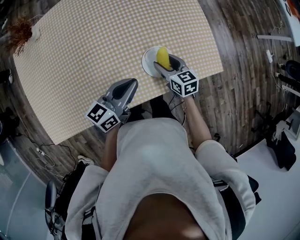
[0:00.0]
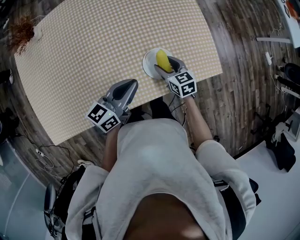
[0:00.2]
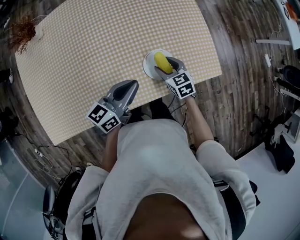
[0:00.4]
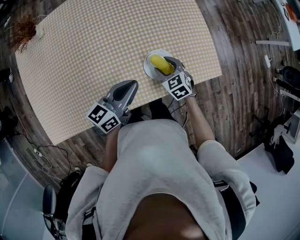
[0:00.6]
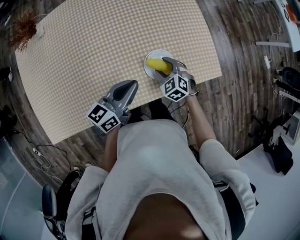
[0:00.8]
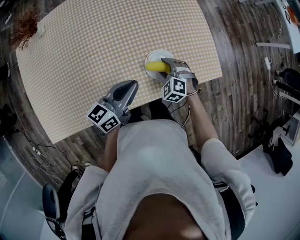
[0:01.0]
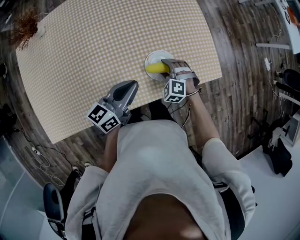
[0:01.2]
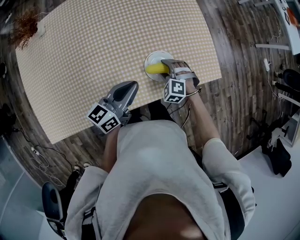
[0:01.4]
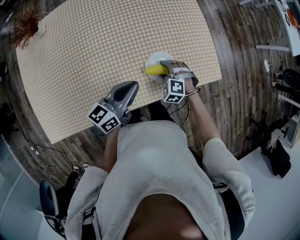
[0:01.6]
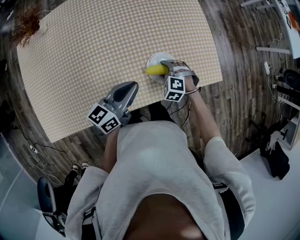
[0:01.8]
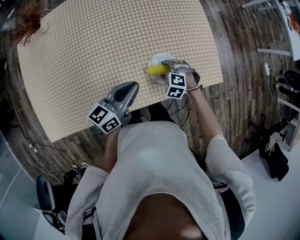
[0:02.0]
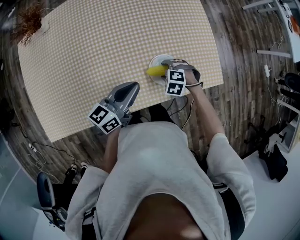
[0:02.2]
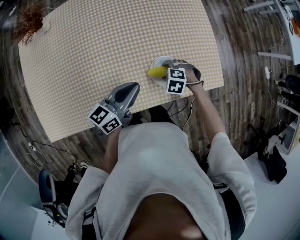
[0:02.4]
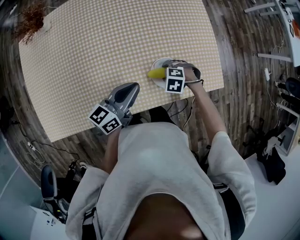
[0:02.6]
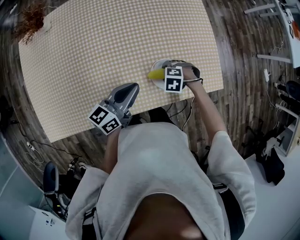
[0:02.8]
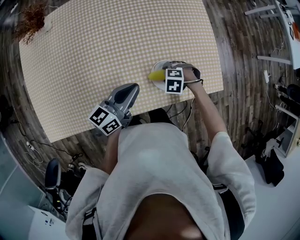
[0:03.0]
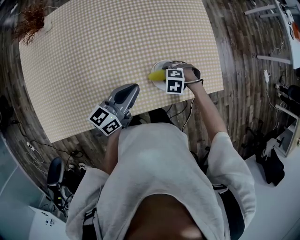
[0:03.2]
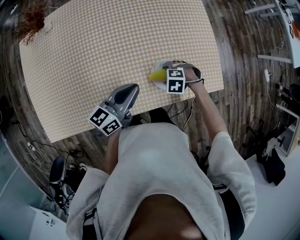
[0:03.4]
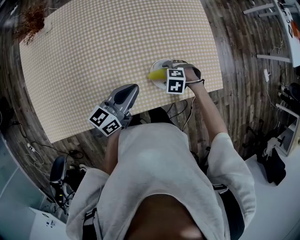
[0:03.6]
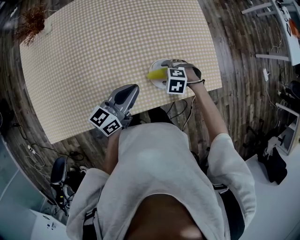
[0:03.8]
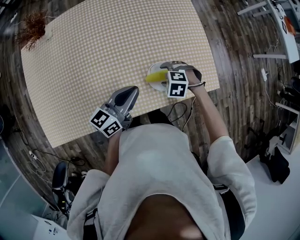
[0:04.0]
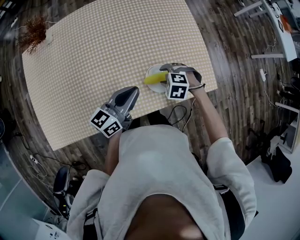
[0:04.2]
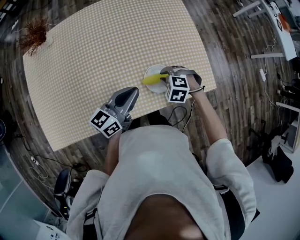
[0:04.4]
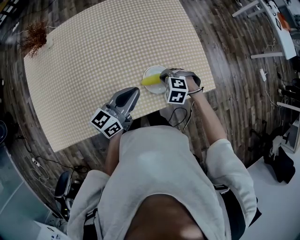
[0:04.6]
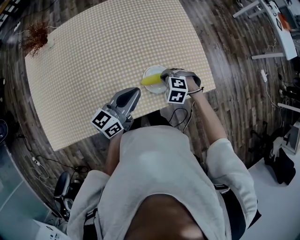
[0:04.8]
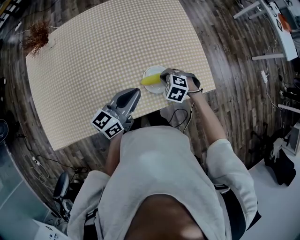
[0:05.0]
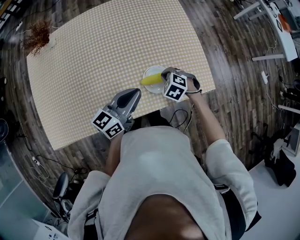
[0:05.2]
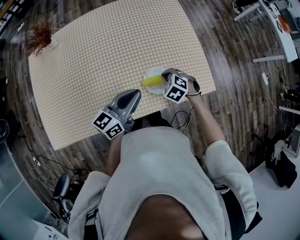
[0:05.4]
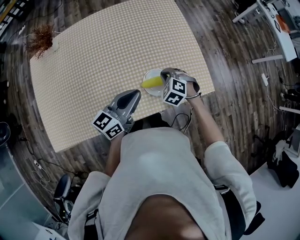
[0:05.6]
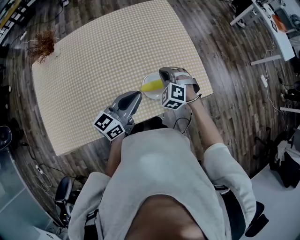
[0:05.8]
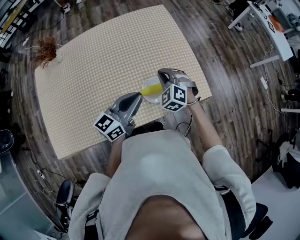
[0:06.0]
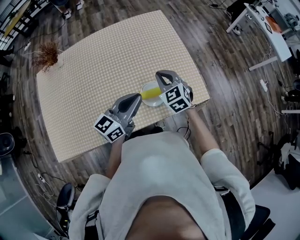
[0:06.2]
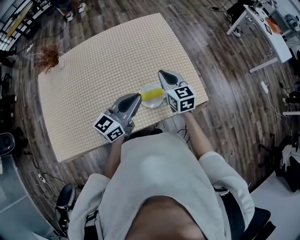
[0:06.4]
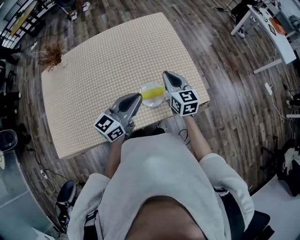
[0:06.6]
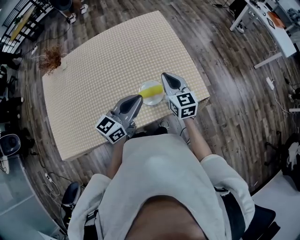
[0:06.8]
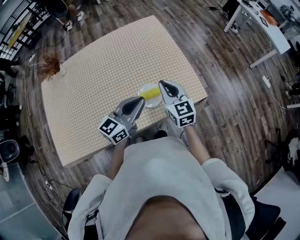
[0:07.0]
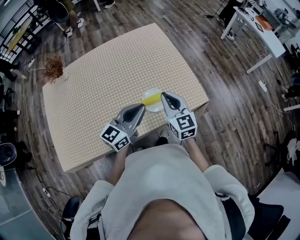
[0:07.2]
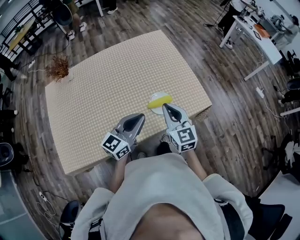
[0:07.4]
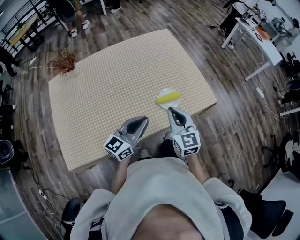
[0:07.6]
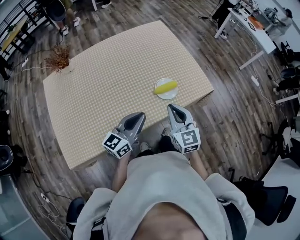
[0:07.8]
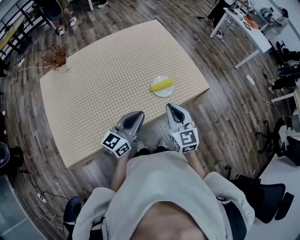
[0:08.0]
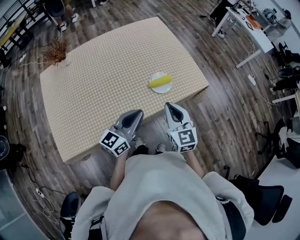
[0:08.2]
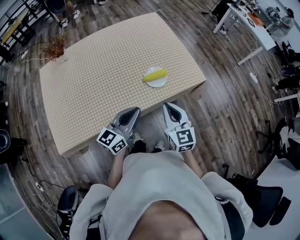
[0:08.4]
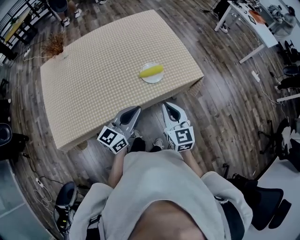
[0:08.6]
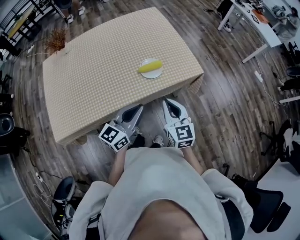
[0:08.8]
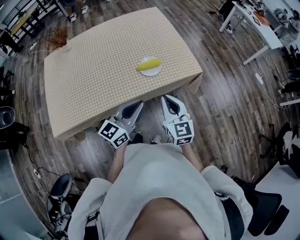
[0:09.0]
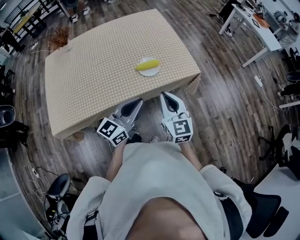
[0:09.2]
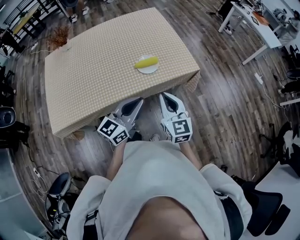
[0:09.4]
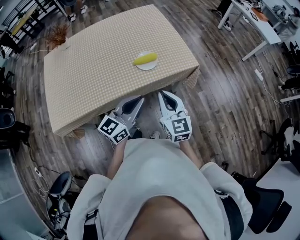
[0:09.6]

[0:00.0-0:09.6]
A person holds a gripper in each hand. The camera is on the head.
0:00.0 to 0:01.6: The right gripper ends up approximately 5 cm from where it was, and twists about 70 degrees counterclockwise, seen from behind.
0:01.6 to 0:03.2: The right gripper rotates approximately 30 degrees.
0:03.2 to 0:04.8: The right gripper heads upward, covering roughly 10 cm, and closes up. Meanwhile the left gripper moves roughly 5 cm.
0:04.8 to 0:06.4: The left gripper goes some 10 cm upward and to the right, while the right gripper is displaced upward by about 20 cm, and tilts its fingers approximately 50 degrees upward.
0:06.4 to 0:08.0: The left gripper is displaced backward and to the left by roughly 20 cm. Meanwhile the right gripper travels backward by about 25 cm.
0:08.0 to 0:09.6: The two grippers go approximately 20 cm to the right and backward.

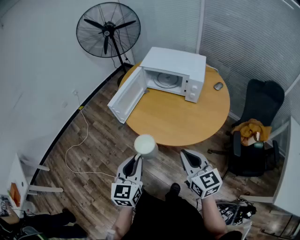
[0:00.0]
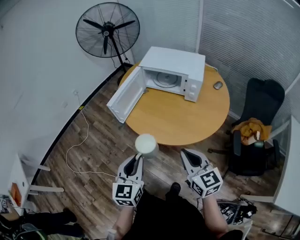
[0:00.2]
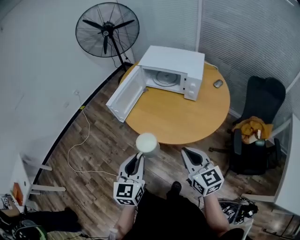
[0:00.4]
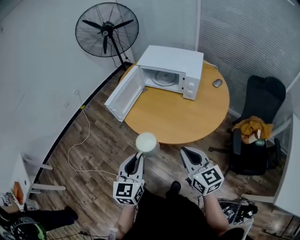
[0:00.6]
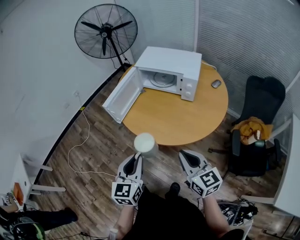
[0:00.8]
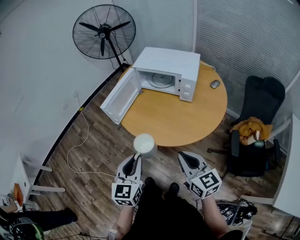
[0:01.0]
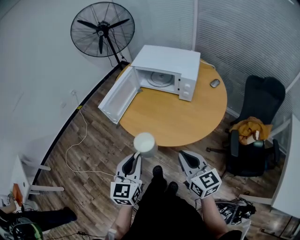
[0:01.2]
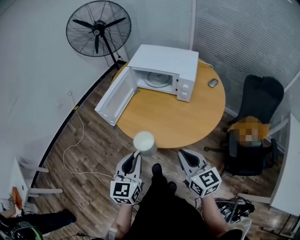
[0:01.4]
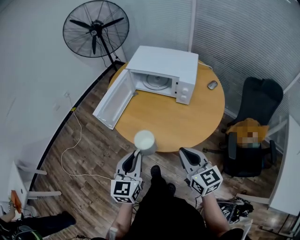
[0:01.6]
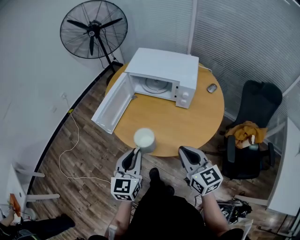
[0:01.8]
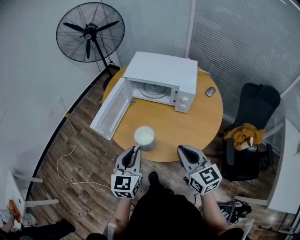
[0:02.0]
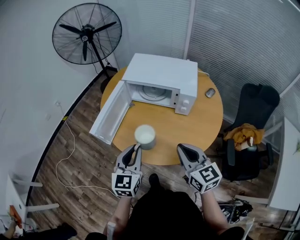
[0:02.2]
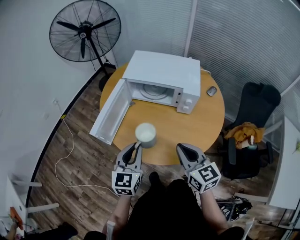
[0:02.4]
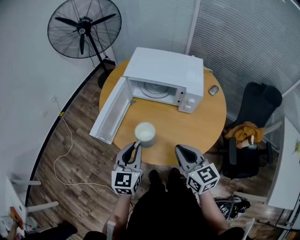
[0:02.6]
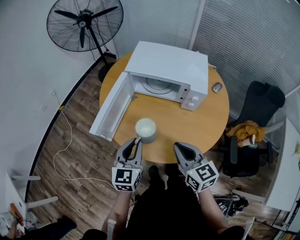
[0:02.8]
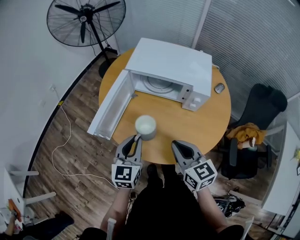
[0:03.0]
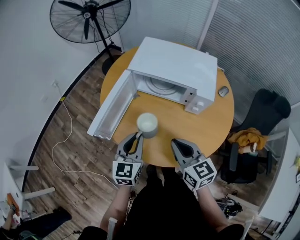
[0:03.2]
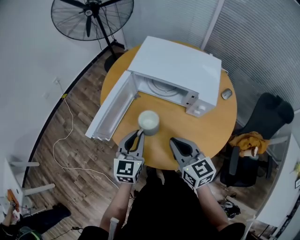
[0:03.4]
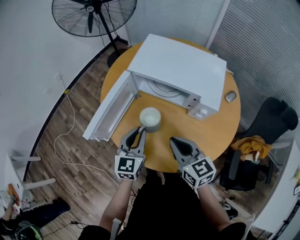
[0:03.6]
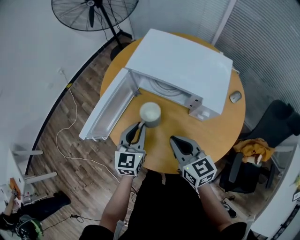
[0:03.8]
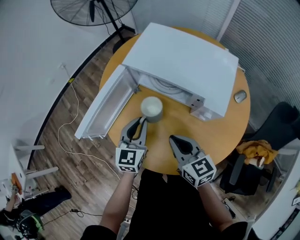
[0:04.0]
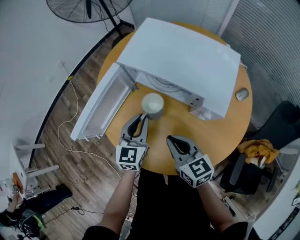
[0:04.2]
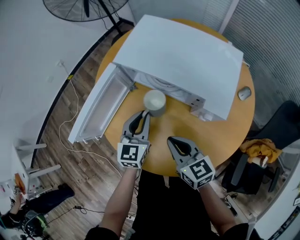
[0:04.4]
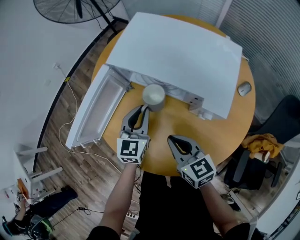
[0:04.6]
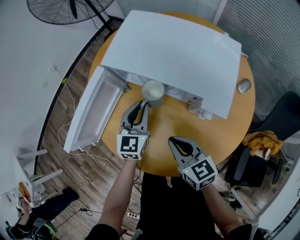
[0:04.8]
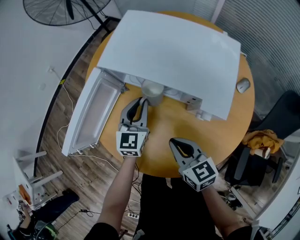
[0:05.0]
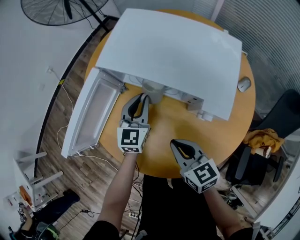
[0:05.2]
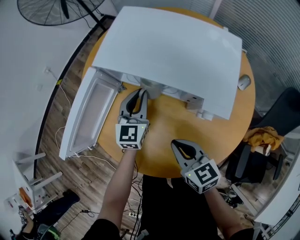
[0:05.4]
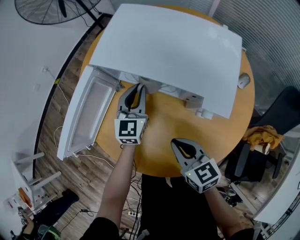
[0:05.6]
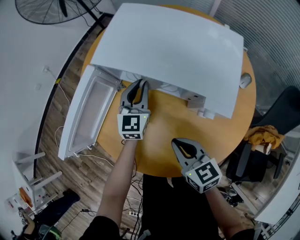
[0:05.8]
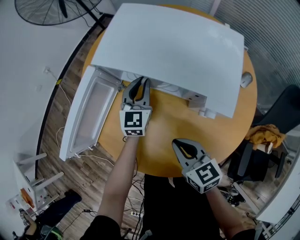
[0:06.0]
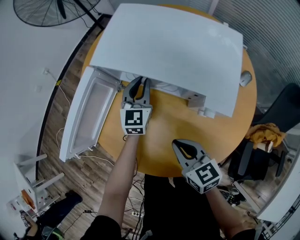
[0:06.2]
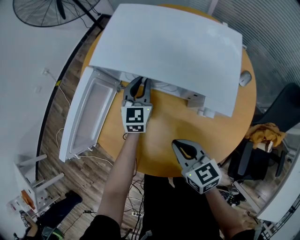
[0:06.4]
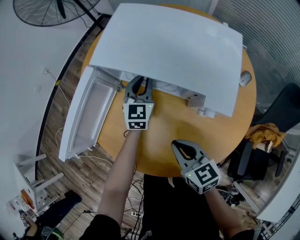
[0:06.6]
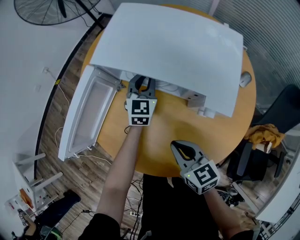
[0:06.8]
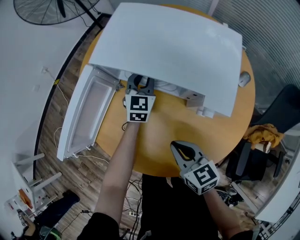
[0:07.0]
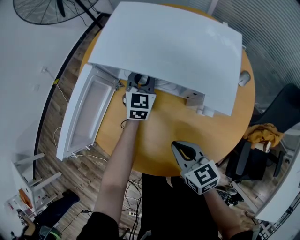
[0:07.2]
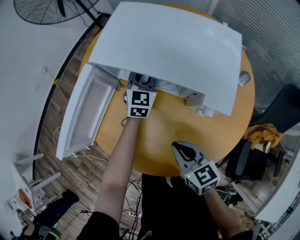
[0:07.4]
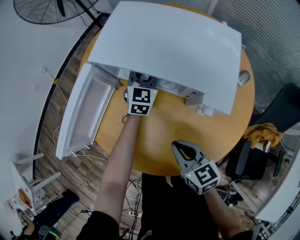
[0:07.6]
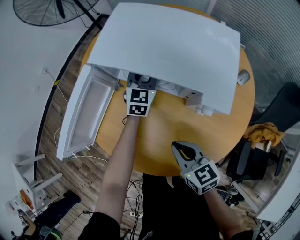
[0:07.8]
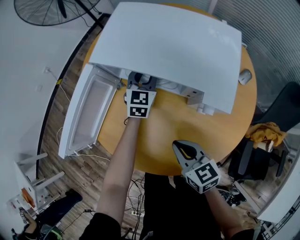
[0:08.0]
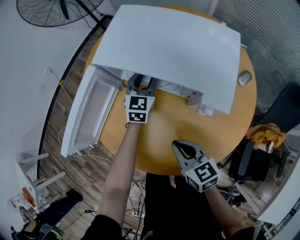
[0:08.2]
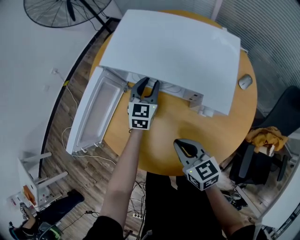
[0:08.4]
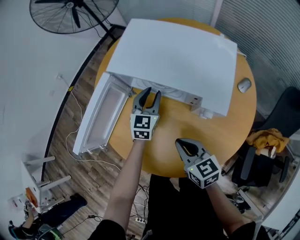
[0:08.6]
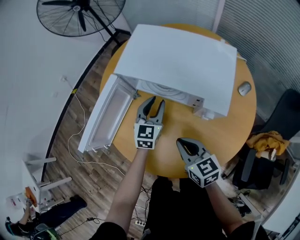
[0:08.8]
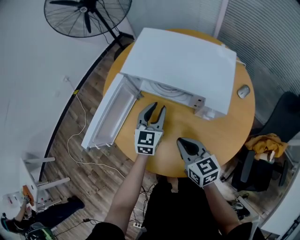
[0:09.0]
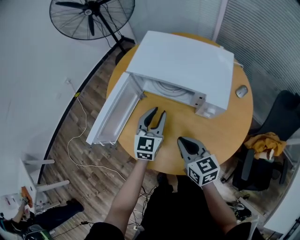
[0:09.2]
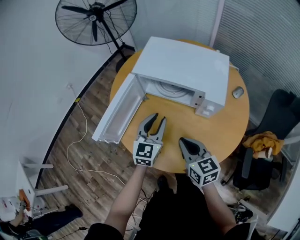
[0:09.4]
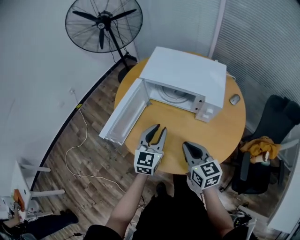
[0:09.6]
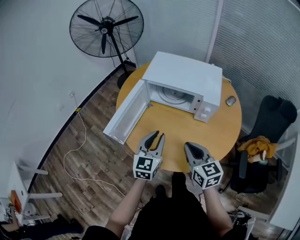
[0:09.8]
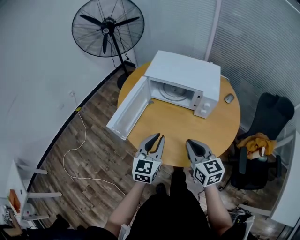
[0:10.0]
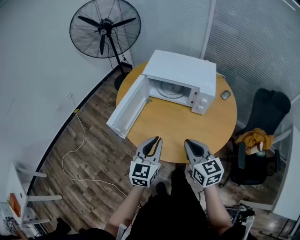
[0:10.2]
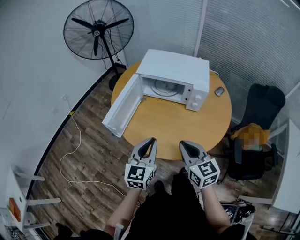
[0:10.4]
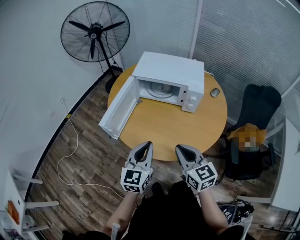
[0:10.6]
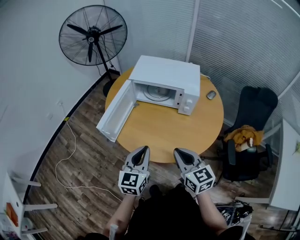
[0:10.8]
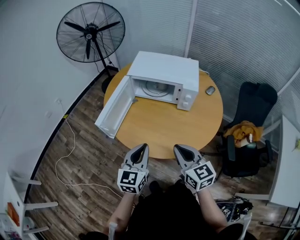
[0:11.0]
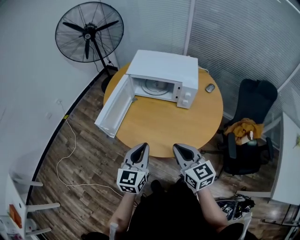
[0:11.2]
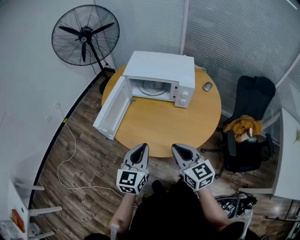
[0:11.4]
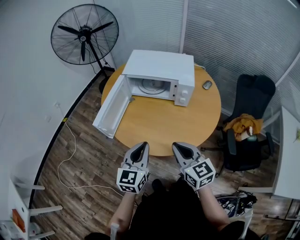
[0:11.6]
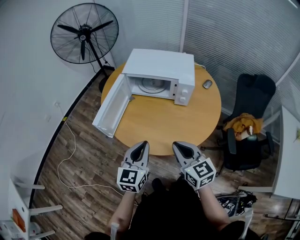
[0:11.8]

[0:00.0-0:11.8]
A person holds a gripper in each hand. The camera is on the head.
0:00.0 to 0:01.4: Both grippers move to the right, some 5 cm.
0:01.4 to 0:03.0: Both grippers travel together forward, approximately 20 cm.
0:03.0 to 0:04.4: The left gripper moves forward, to the right and downward, about 20 cm, while the right gripper heads forward, downward and to the right, covering approximately 15 cm.
0:04.4 to 0:06.0: The left gripper heads forward, to the right and downward, covering approximately 15 cm.
0:06.0 to 0:07.4: The left gripper shifts by some 5 cm.
0:07.4 to 0:08.8: The left gripper travels backward by approximately 10 cm.
0:08.8 to 0:10.4: The right gripper moves backward and upward, approximately 25 cm, and changes its angle by about 20 degrees; the left gripper shifts about 35 cm backward and upward, and closes.
0:10.4 to 0:11.8: There are only small adjustments of the grippers.

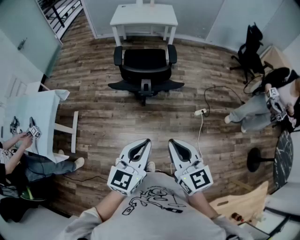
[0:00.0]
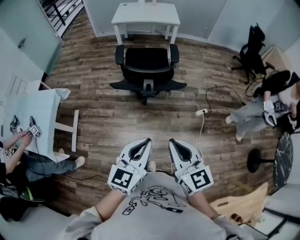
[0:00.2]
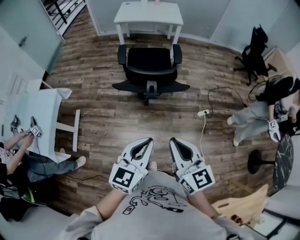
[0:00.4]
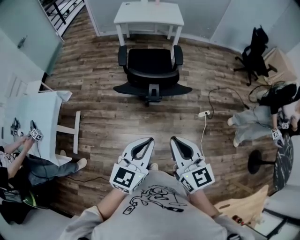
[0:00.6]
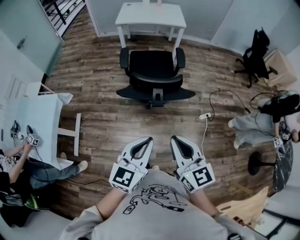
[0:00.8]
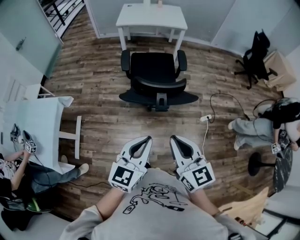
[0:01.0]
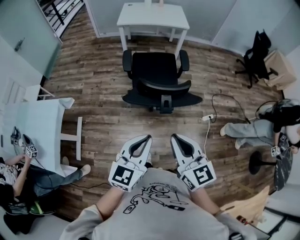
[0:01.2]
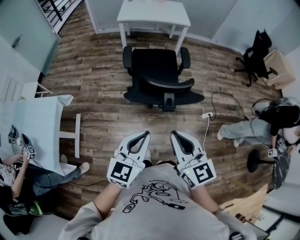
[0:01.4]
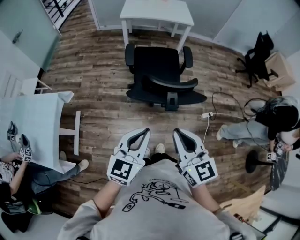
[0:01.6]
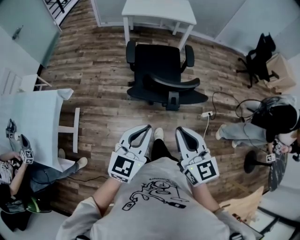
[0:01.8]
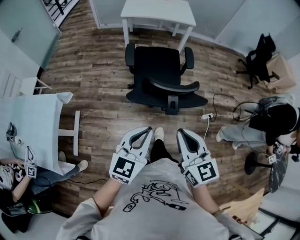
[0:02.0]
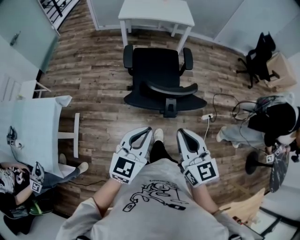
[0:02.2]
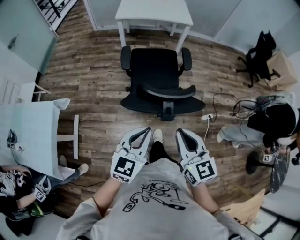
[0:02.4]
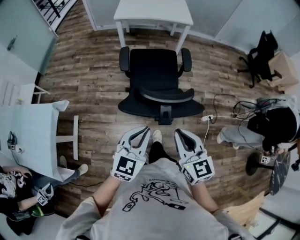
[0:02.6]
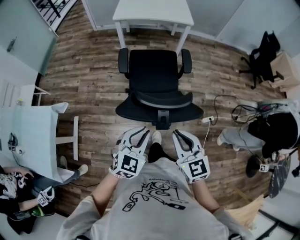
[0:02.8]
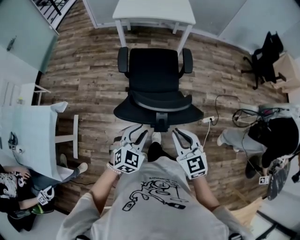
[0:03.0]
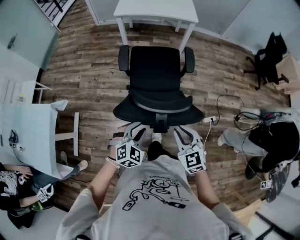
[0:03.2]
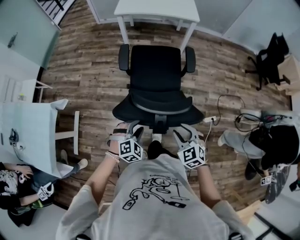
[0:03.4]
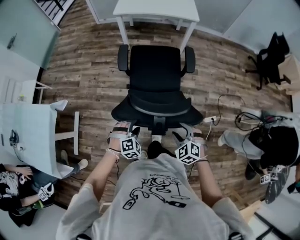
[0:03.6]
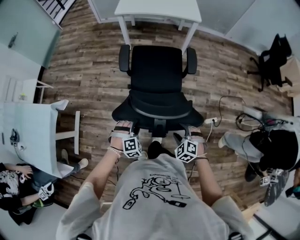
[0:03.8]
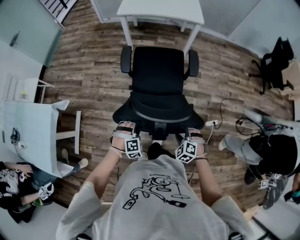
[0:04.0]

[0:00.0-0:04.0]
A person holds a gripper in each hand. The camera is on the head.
0:00.0 to 0:01.4: The left gripper travels to the left and forward by some 20 cm; the right gripper is displaced forward and to the left by about 20 cm.
0:01.4 to 0:02.6: The right gripper shifts roughly 10 cm forward and downward. The left gripper travels forward by roughly 10 cm.
0:02.6 to 0:04.0: The two grippers go some 30 cm downward. The left gripper angles its fingers downward, by approximately 40 degrees, and opens up, while the right gripper points its fingers roughly 40 degrees further downward, and opens up.
